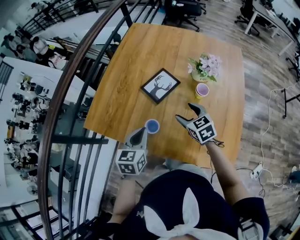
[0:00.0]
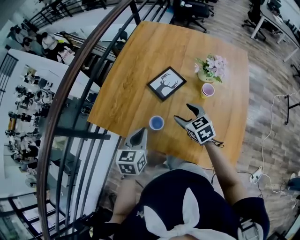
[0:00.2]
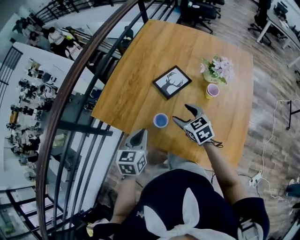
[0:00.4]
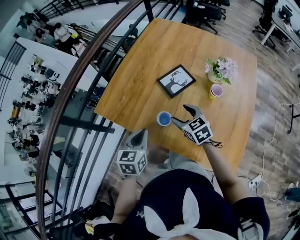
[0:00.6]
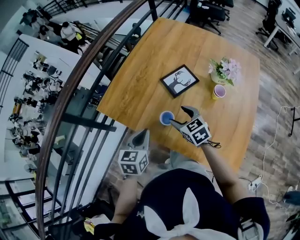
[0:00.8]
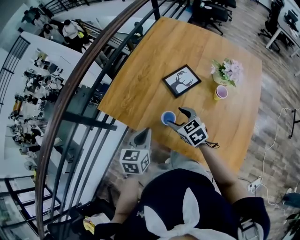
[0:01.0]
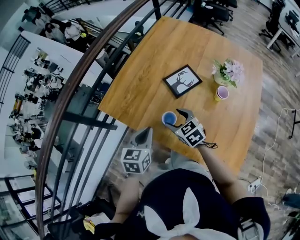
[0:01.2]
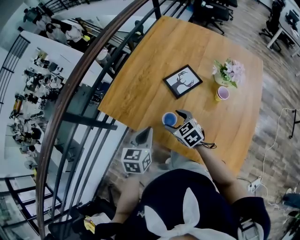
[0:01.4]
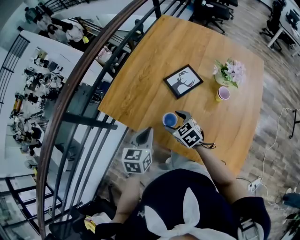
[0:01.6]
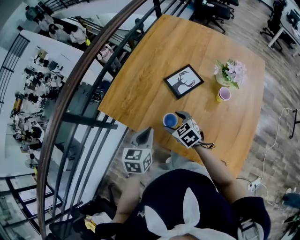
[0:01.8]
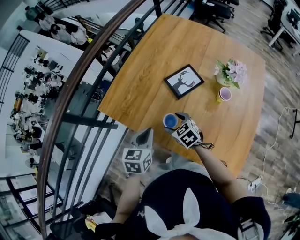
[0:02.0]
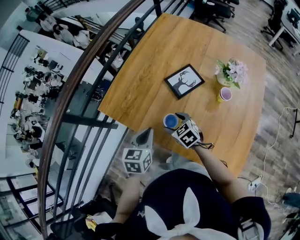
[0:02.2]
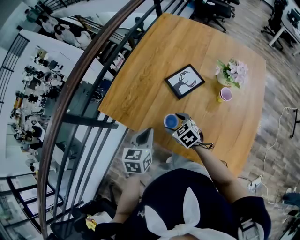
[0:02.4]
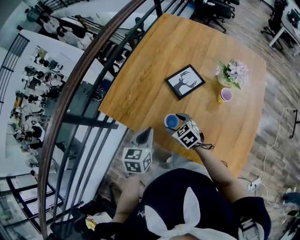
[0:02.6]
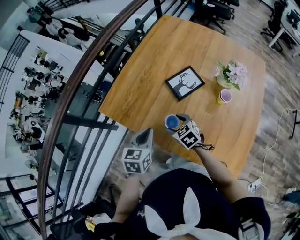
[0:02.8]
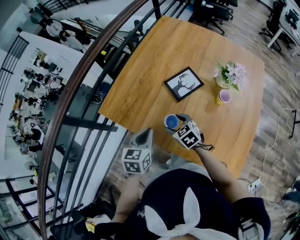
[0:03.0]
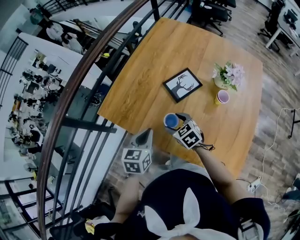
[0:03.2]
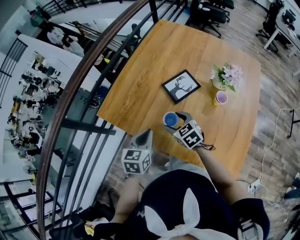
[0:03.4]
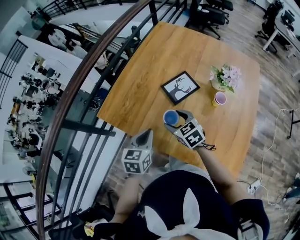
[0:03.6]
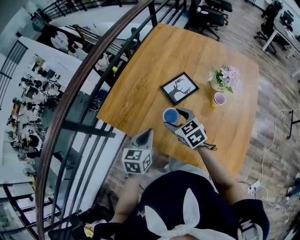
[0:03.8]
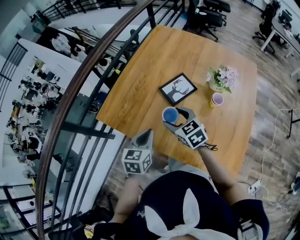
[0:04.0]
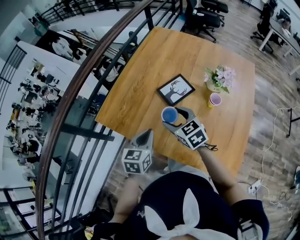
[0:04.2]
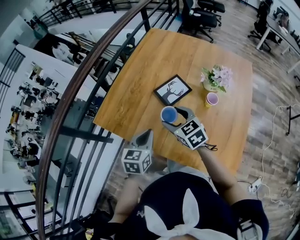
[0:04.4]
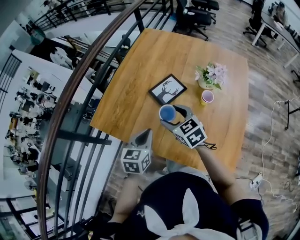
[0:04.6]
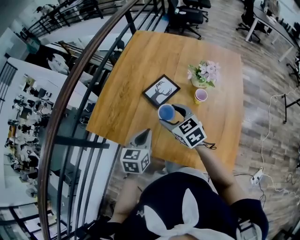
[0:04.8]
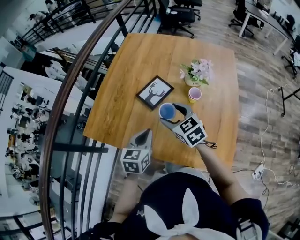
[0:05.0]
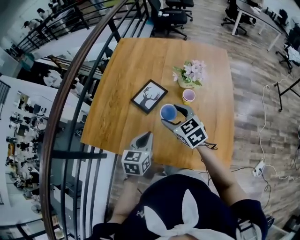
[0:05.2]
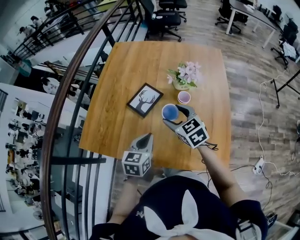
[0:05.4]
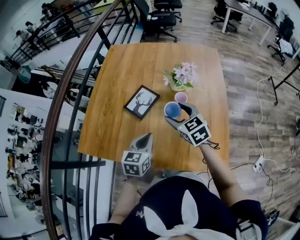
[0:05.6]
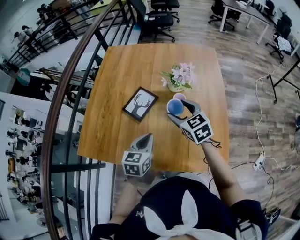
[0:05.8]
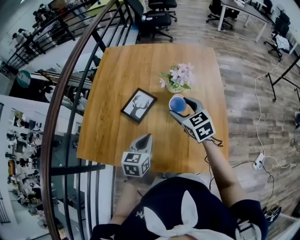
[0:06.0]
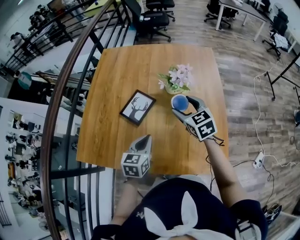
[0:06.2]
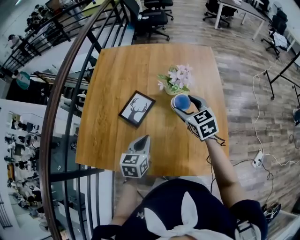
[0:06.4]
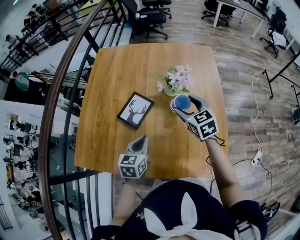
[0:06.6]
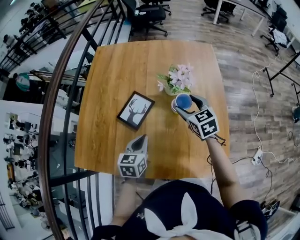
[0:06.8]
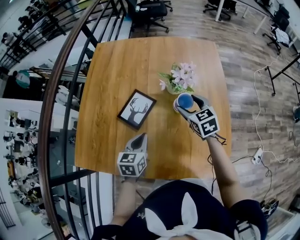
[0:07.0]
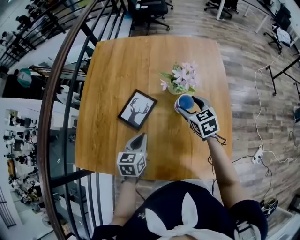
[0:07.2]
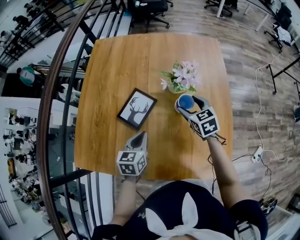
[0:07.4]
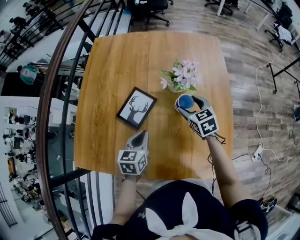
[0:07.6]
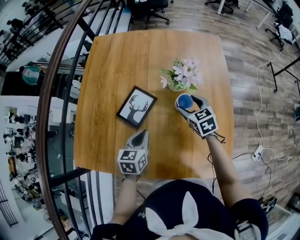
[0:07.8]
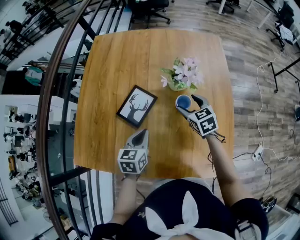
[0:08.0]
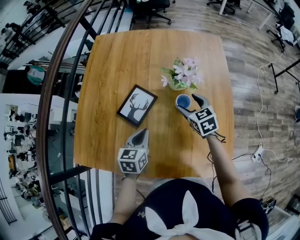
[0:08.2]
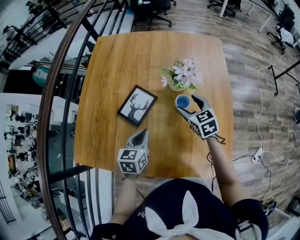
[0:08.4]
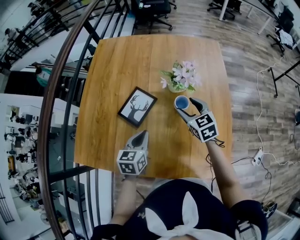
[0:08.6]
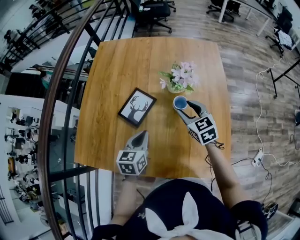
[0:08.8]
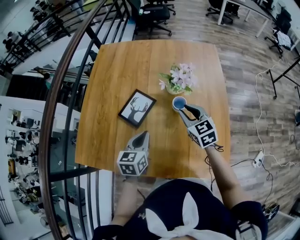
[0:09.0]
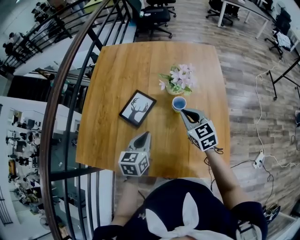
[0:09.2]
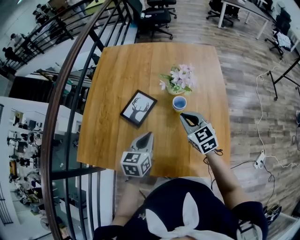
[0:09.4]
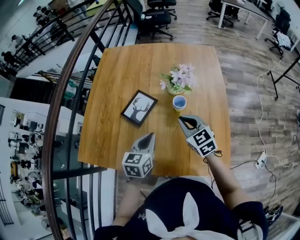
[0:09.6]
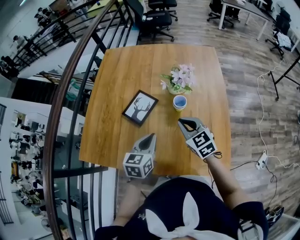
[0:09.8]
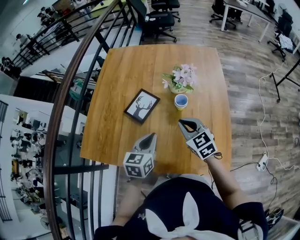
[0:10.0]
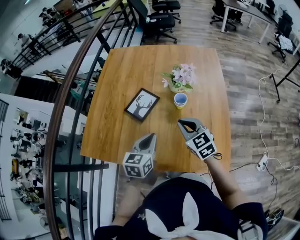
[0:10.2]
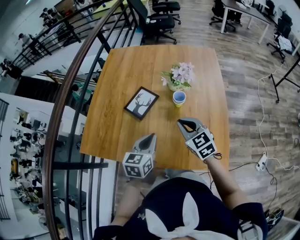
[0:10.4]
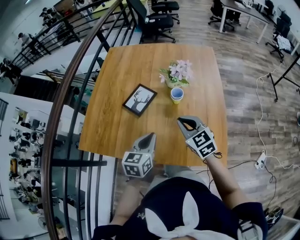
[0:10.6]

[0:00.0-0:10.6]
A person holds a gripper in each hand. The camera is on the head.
0:00.0 to 0:01.6: The right gripper heads to the left, covering approximately 15 cm, and rotates about 20 degrees, while the left gripper travels to the left by roughly 5 cm.
0:01.6 to 0:03.0: There are only small adjustments of the grippers.
0:03.0 to 0:04.6: The left gripper is displaced to the right by some 5 cm. The right gripper goes about 15 cm upward and to the right.
0:04.6 to 0:06.0: The left gripper heads to the right, covering approximately 15 cm. The right gripper shifts about 20 cm to the right, and rotates roughly 20 degrees.
0:06.0 to 0:07.6: The right gripper moves downward and forward, approximately 15 cm. Meanwhile the left gripper moves forward and downward, roughly 10 cm.
0:07.6 to 0:09.0: The left gripper ends up approximately 5 cm from where it was, while the right gripper is displaced backward and upward by approximately 10 cm, and closes up.
0:09.0 to 0:10.6: Both grippers move backward, approximately 15 cm.

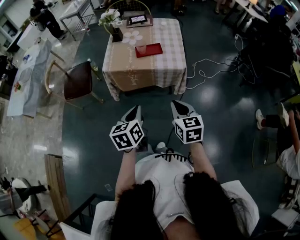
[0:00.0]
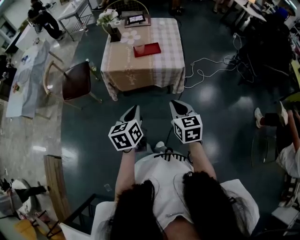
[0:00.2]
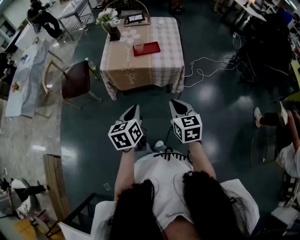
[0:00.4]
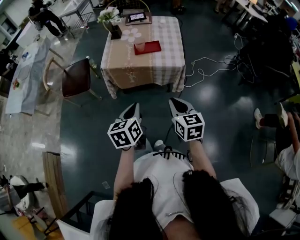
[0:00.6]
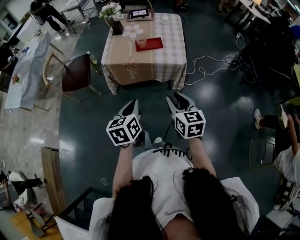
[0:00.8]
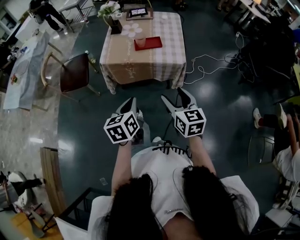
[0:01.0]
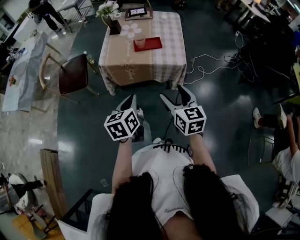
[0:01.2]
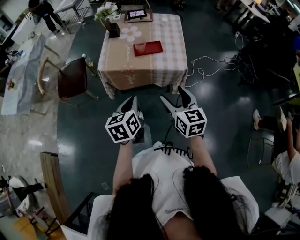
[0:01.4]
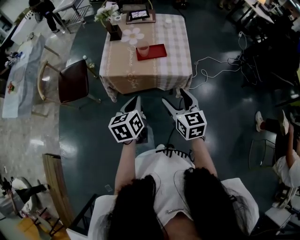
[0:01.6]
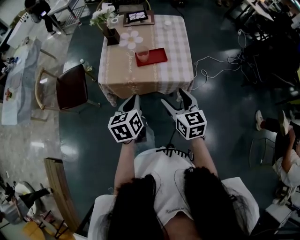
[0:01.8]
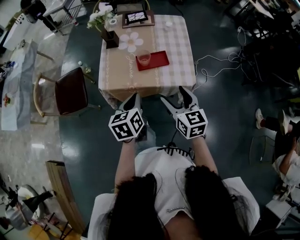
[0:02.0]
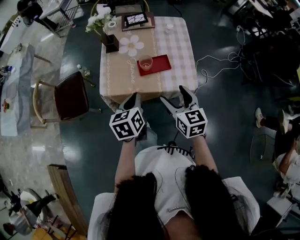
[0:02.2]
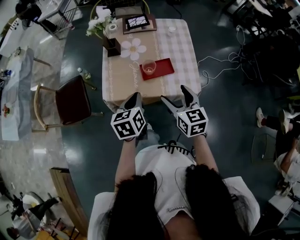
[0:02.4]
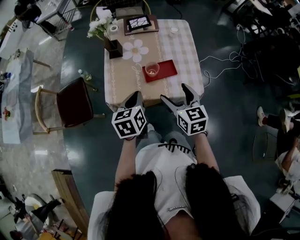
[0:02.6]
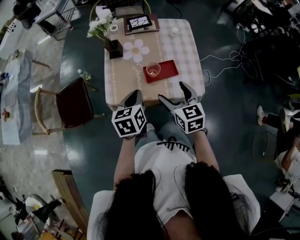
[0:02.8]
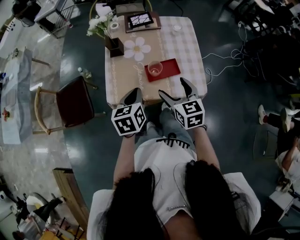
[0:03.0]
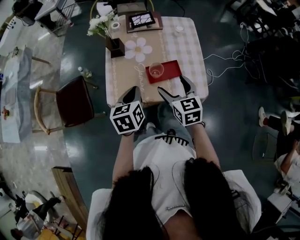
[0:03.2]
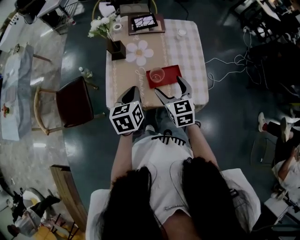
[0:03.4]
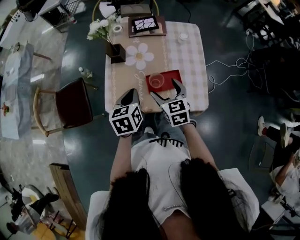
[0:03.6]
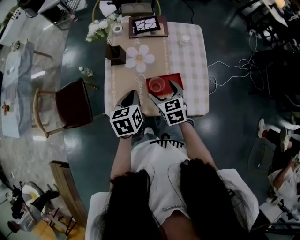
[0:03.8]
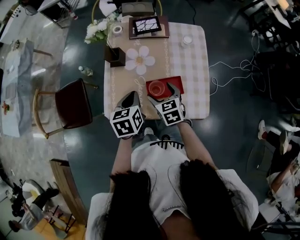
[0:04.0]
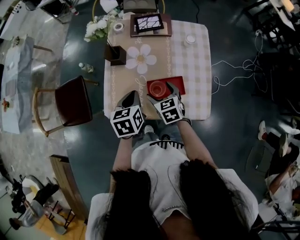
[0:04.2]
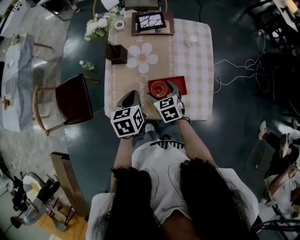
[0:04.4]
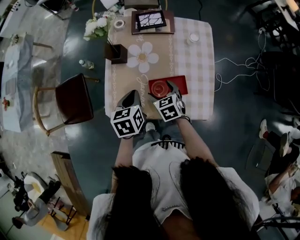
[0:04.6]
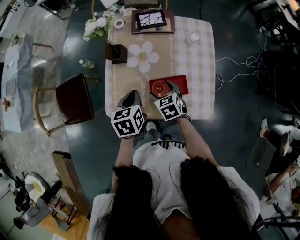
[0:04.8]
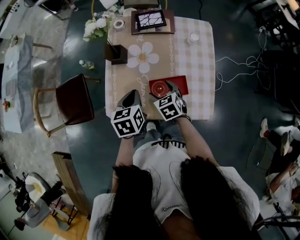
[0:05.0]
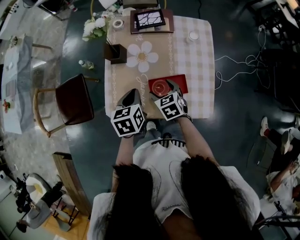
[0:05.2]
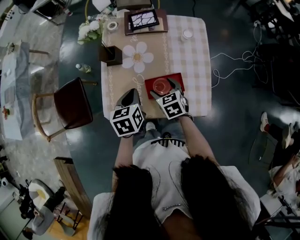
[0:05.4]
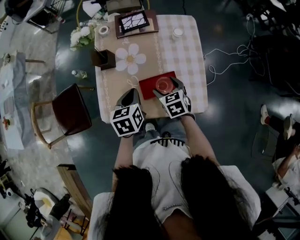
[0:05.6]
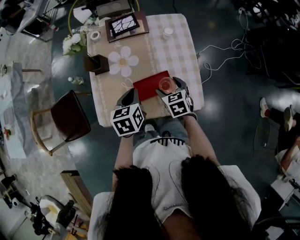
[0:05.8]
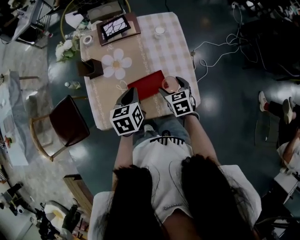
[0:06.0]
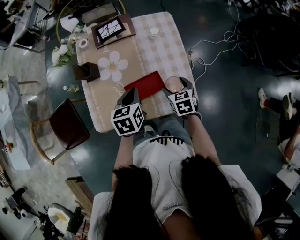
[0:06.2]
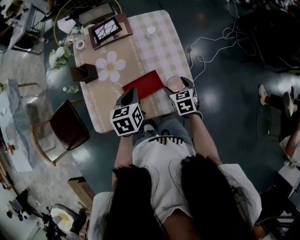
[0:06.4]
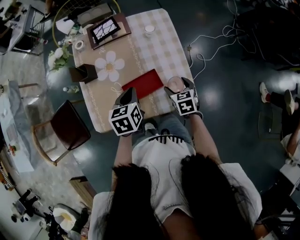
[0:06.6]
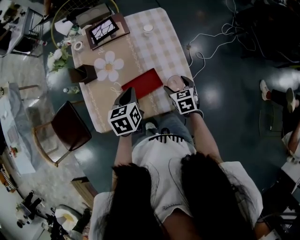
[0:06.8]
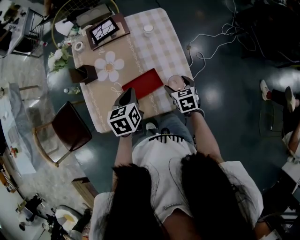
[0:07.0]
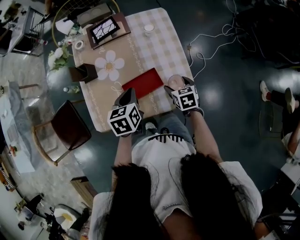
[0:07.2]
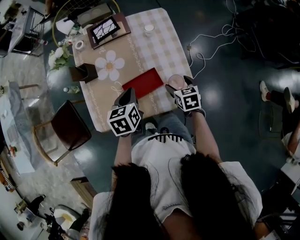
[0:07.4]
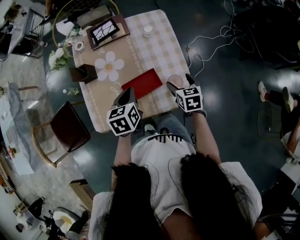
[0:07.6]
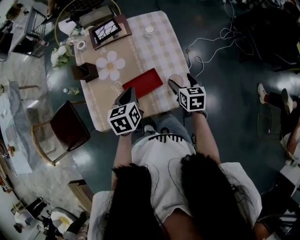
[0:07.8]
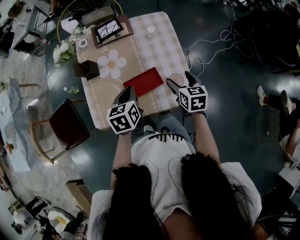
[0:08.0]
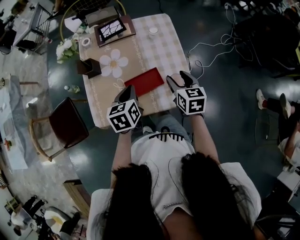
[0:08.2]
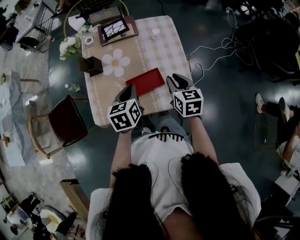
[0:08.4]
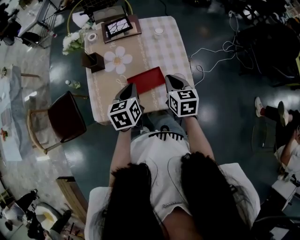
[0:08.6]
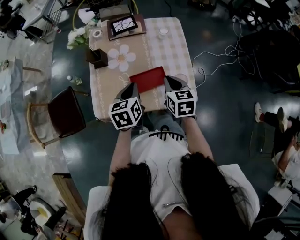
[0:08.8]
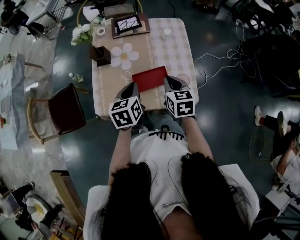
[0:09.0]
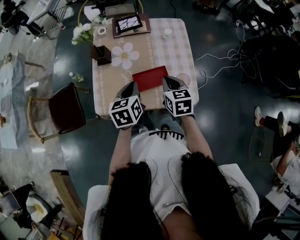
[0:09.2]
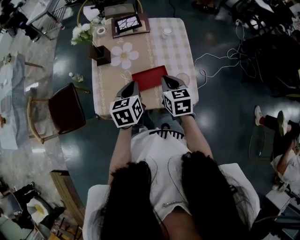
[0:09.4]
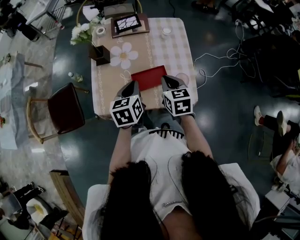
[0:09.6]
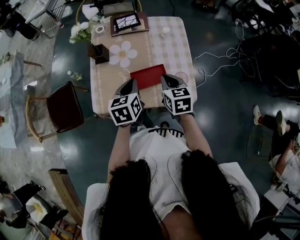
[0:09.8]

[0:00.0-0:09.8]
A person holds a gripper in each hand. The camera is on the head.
0:00.0 to 0:01.4: Both grippers travel together forward, roughly 10 cm. The right gripper opens its fingers.
0:01.4 to 0:02.8: The grippers both shift forward by roughly 25 cm.
0:02.8 to 0:04.2: The left gripper goes about 15 cm forward and downward. The right gripper travels forward and downward by roughly 20 cm.
0:04.2 to 0:05.6: The right gripper goes some 5 cm to the right.
0:05.6 to 0:07.0: The left gripper moves to the right, approximately 10 cm. The right gripper heads to the right, covering roughly 15 cm.
0:07.0 to 0:08.4: The right gripper is displaced upward by approximately 15 cm, and closes its fingers.
0:08.4 to 0:09.8: The right gripper goes approximately 5 cm to the left.

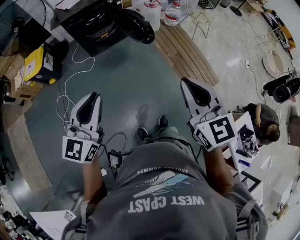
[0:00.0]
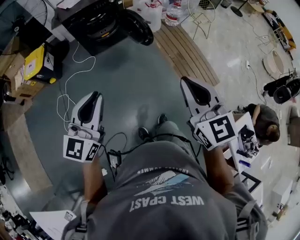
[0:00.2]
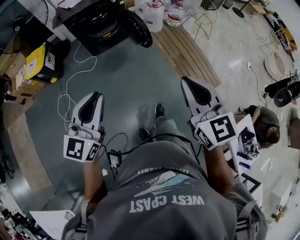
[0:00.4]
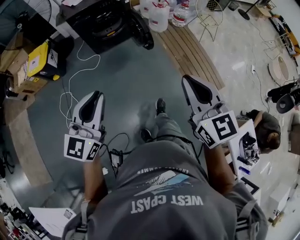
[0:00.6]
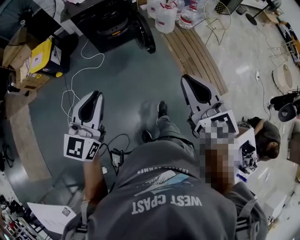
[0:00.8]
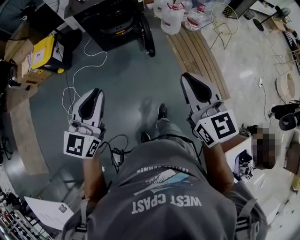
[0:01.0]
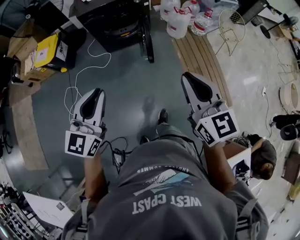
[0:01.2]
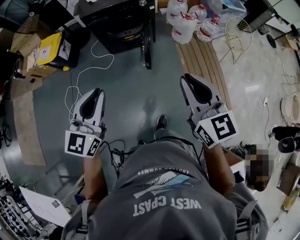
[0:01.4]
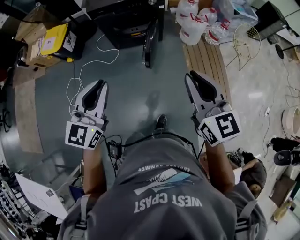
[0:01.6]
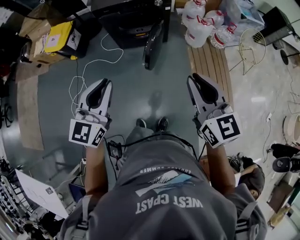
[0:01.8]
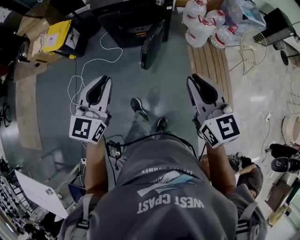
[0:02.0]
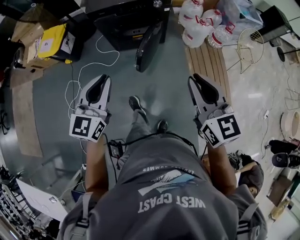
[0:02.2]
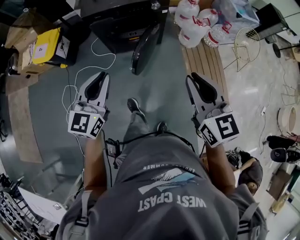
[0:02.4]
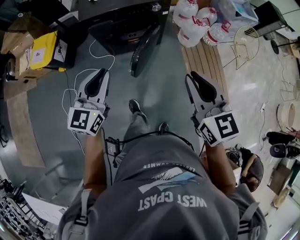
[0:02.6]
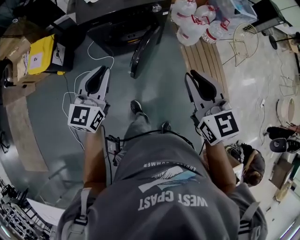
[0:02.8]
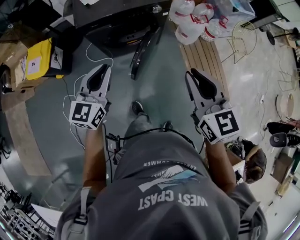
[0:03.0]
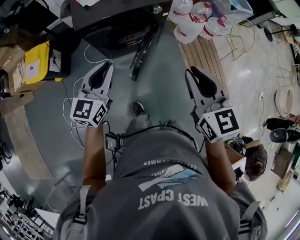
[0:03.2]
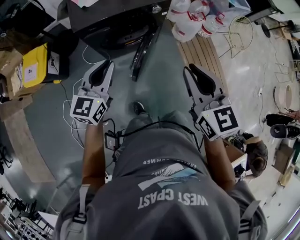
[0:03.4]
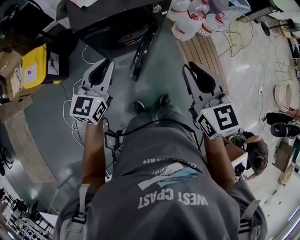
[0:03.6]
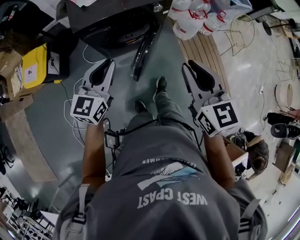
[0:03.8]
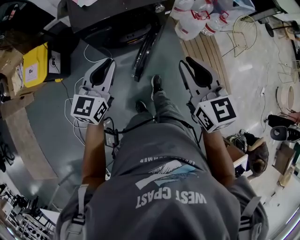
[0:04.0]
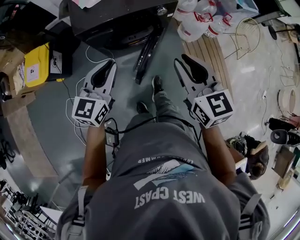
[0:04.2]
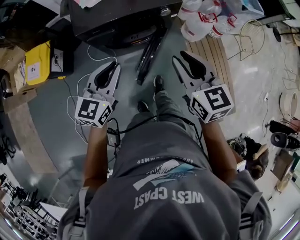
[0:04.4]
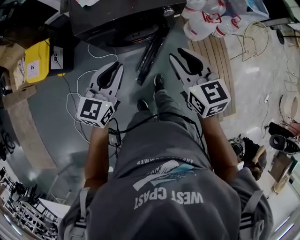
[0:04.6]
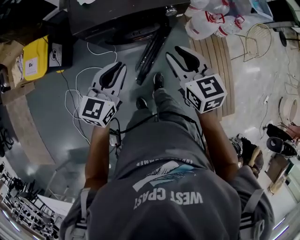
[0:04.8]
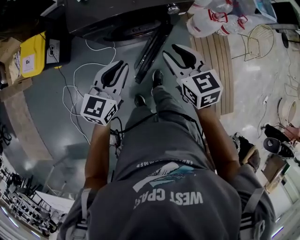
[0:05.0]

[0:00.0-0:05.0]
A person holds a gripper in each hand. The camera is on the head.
0:00.0 to 0:01.6: Both grippers travel together forward, approximately 30 cm.
0:01.6 to 0:03.4: The left gripper goes roughly 30 cm forward; the right gripper moves forward and to the left, approximately 30 cm.
0:03.4 to 0:05.0: The right gripper goes approximately 25 cm forward and downward. The left gripper goes approximately 15 cm forward and downward.
